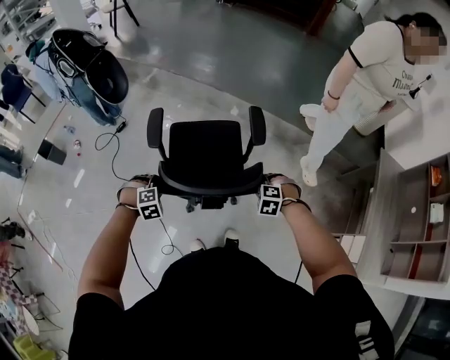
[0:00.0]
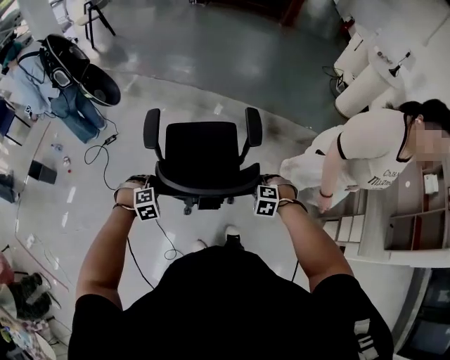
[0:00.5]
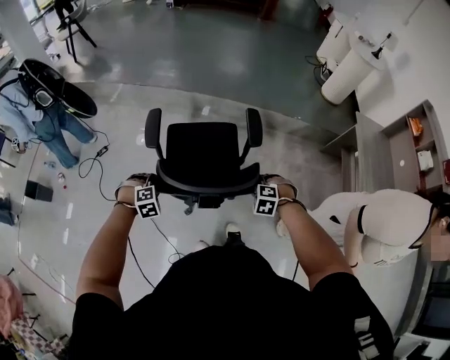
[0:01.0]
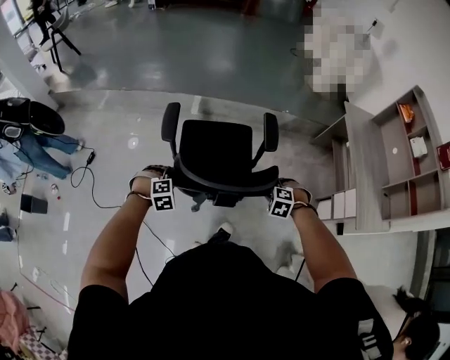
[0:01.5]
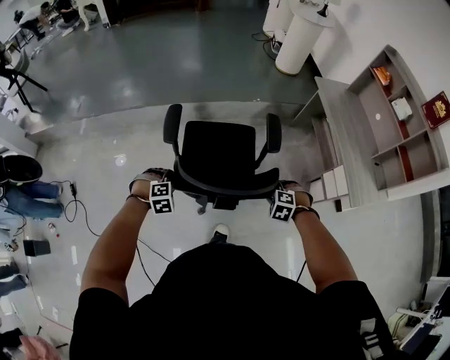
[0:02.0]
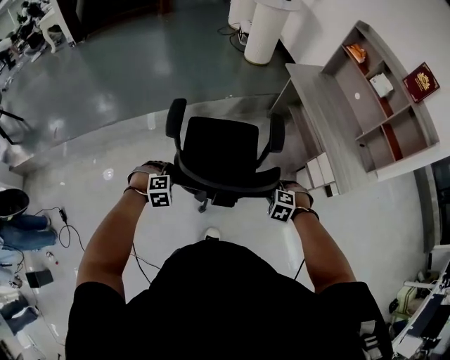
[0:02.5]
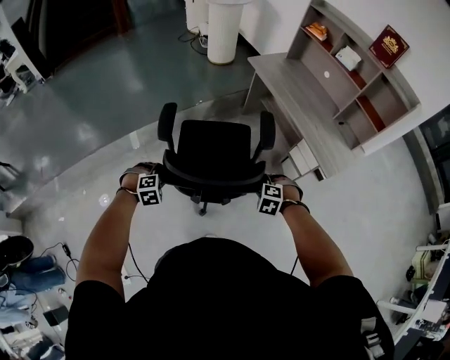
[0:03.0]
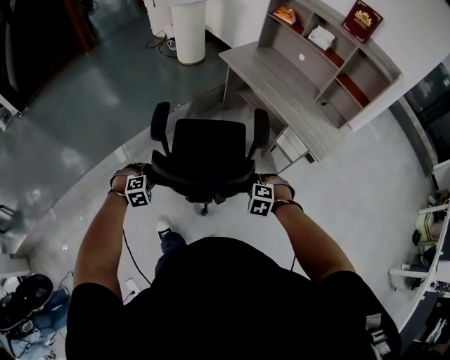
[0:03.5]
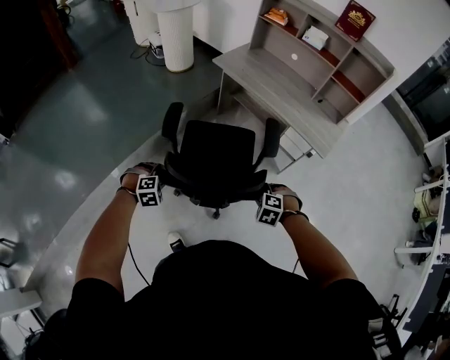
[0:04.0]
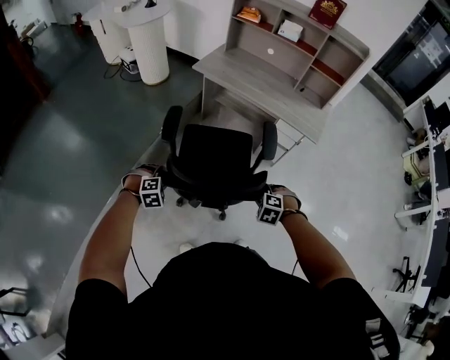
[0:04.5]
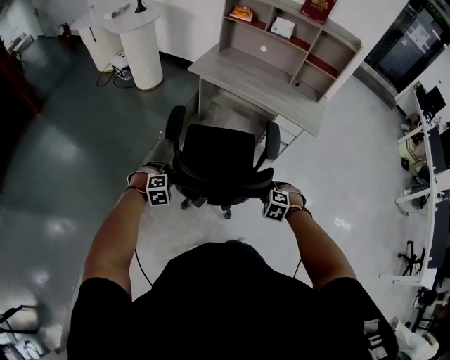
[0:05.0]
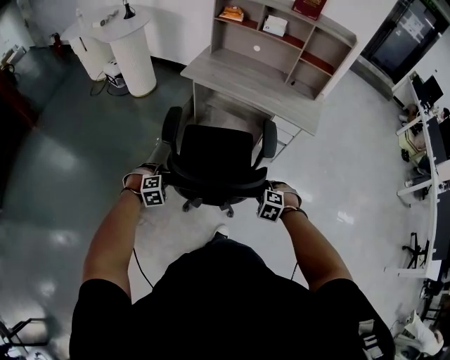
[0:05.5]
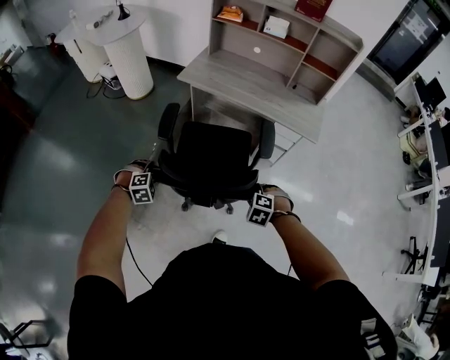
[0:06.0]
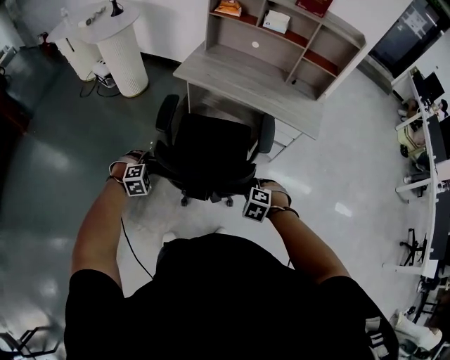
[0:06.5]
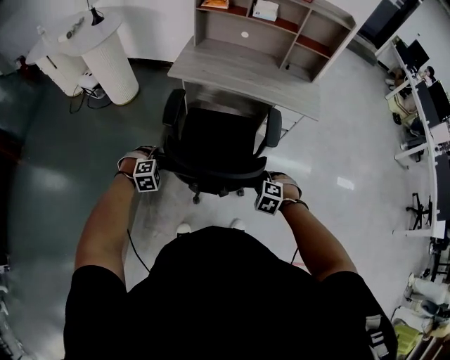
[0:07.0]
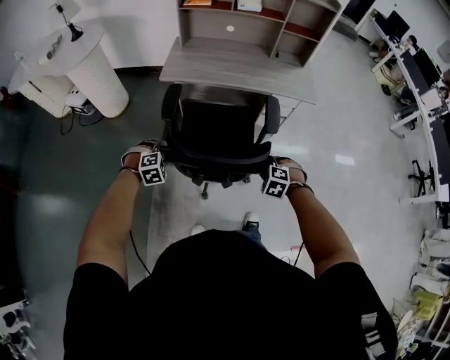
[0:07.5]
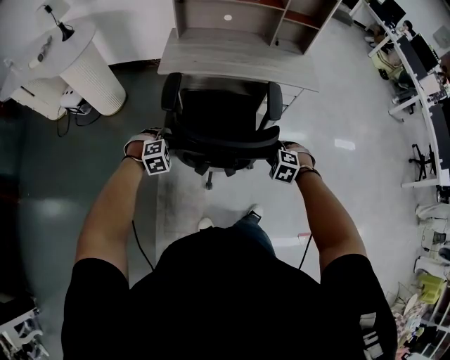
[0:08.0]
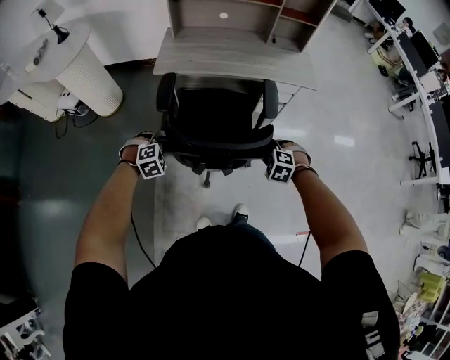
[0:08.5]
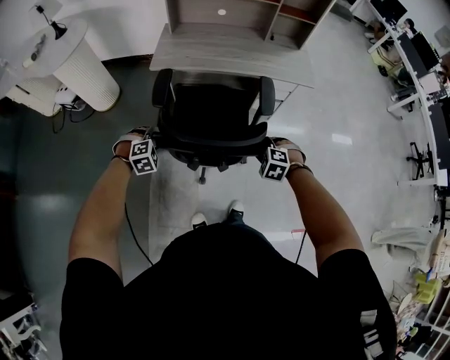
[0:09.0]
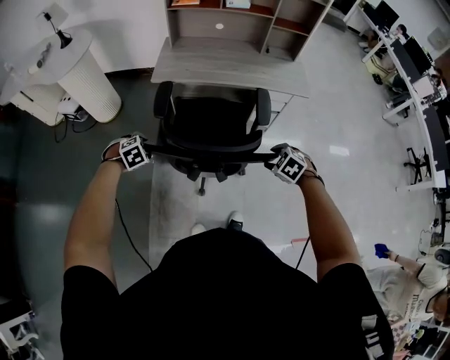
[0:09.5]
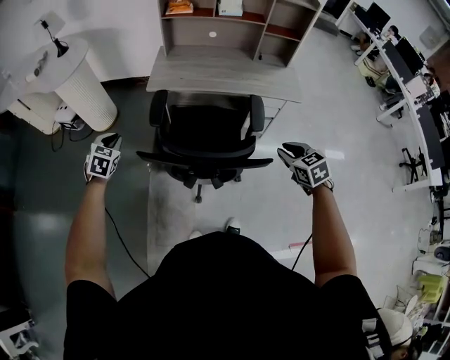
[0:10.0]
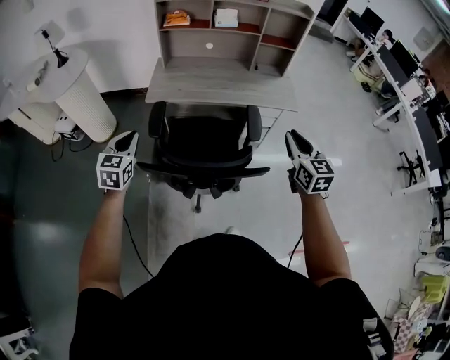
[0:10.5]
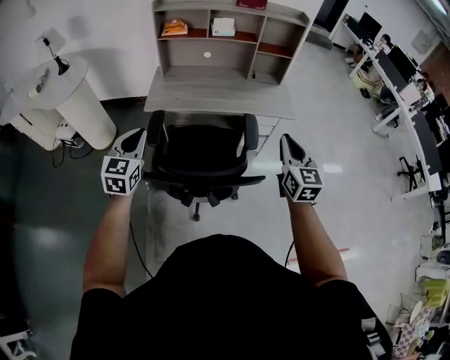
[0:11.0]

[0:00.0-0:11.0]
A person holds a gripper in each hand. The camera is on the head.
0:00.0 to 0:02.0: The left gripper moves approximately 30 cm, and turns by some 40 degrees. The right gripper shifts by approximately 25 cm, and changes its angle by some 40 degrees.
0:02.0 to 0:03.5: The right gripper moves approximately 15 cm, and changes its angle by about 30 degrees. Meanwhile the left gripper shifts by approximately 30 cm, and swivels about 30 degrees.
0:03.5 to 0:05.5: The right gripper changes place by about 15 cm, and rotates about 30 degrees. The left gripper changes place by approximately 20 cm, and rotates about 30 degrees.
0:05.5 to 0:07.5: The right gripper goes roughly 20 cm to the left and forward. Meanwhile the left gripper shifts some 25 cm forward and to the left.
0:07.5 to 0:09.0: The grippers move only a little.
0:09.0 to 0:11.0: The grippers both shift upward by approximately 30 cm. The left gripper tips its fingers upward by some 50 degrees, and closes up; the right gripper tilts its fingers some 60 degrees upward, and closes up.

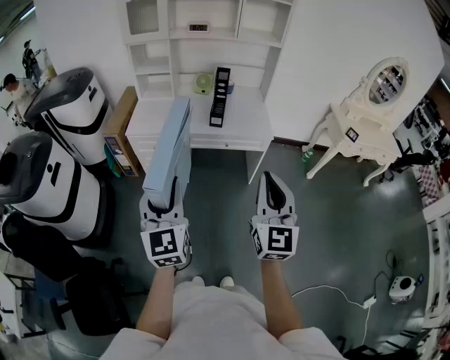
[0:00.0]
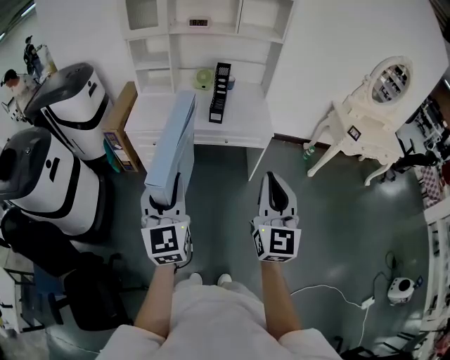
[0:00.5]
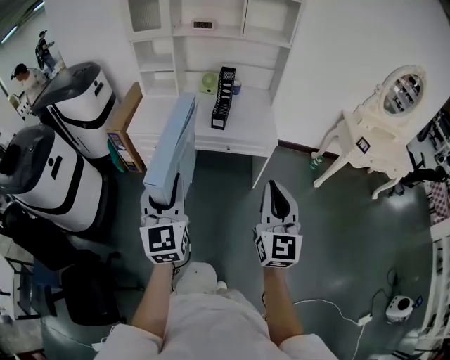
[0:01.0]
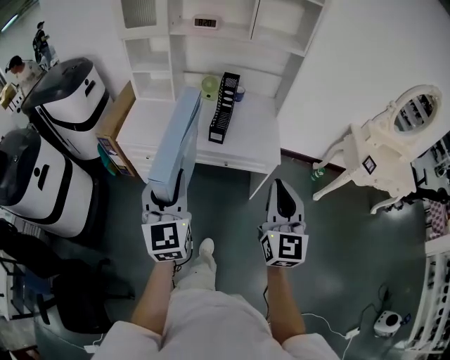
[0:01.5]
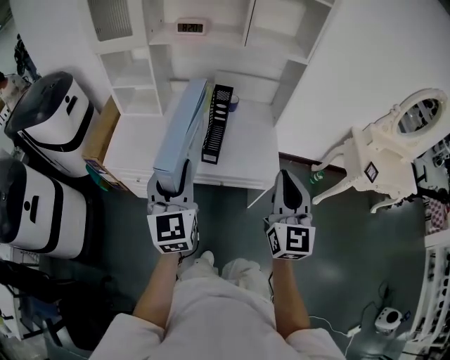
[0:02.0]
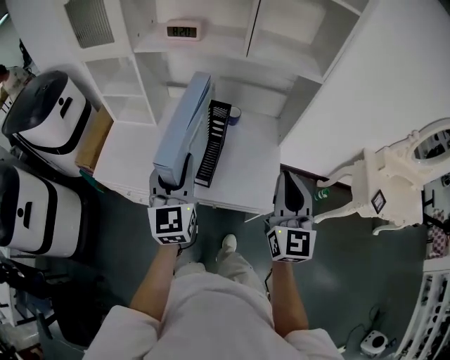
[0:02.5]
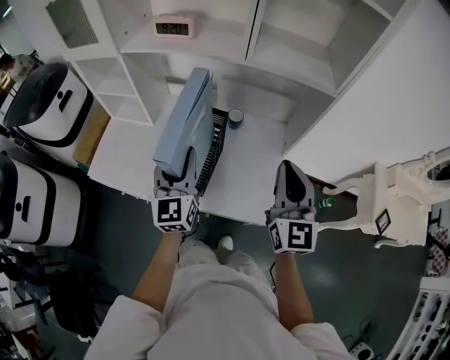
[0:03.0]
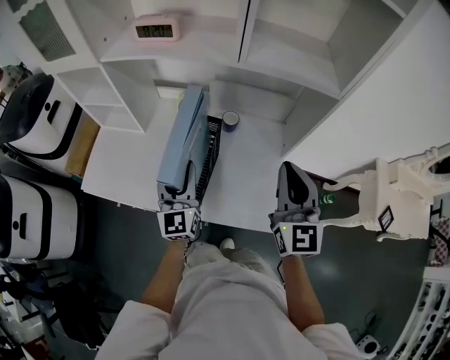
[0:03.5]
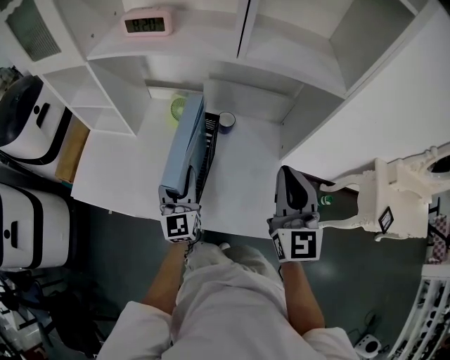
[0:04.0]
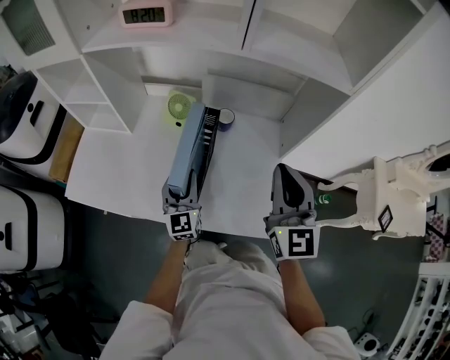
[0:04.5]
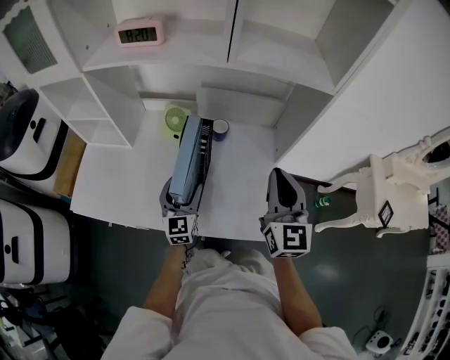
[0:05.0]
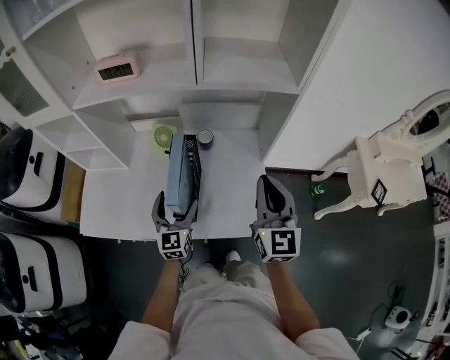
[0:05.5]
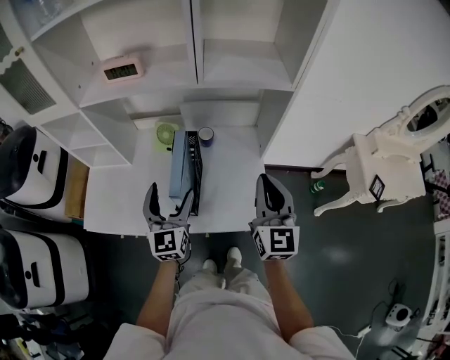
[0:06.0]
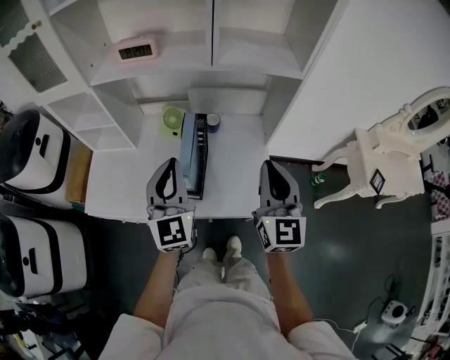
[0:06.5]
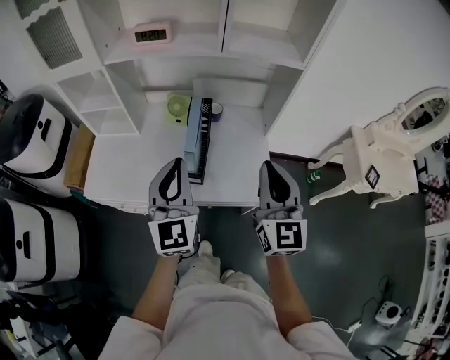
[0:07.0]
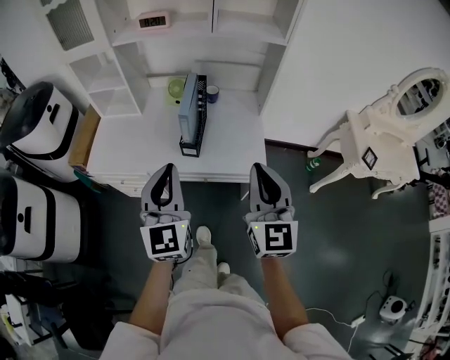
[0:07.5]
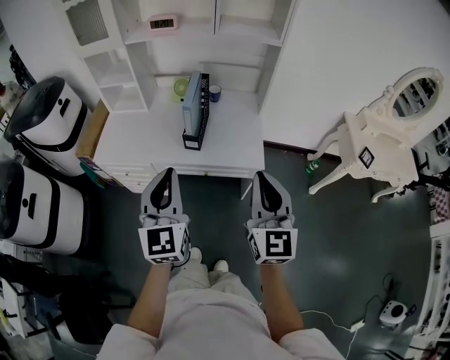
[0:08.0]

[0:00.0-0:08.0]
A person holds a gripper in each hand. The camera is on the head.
0:00.0 to 0:02.0: Both grippers travel together forward, approximately 40 cm.
0:02.0 to 0:04.0: The right gripper moves forward, roughly 35 cm, while the left gripper goes about 40 cm forward and downward.
0:04.0 to 0:06.0: The left gripper travels upward by some 10 cm, and opens its fingers. Meanwhile the right gripper moves backward, some 5 cm.
0:06.0 to 0:08.0: Both grippers move backward, some 35 cm. The left gripper closes its fingers.

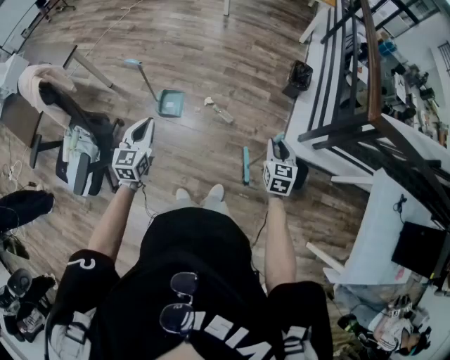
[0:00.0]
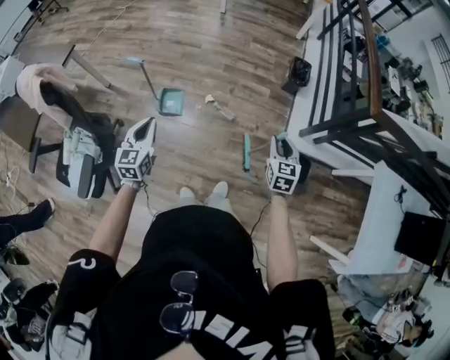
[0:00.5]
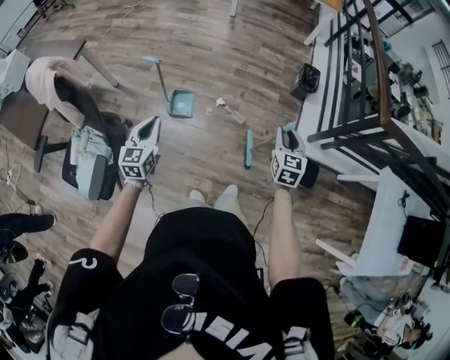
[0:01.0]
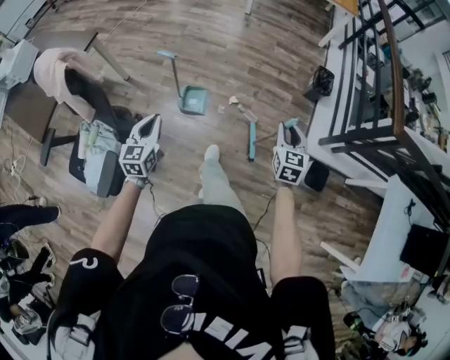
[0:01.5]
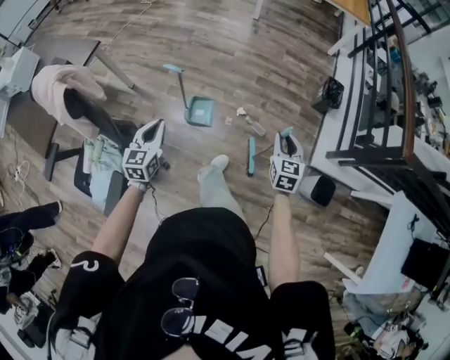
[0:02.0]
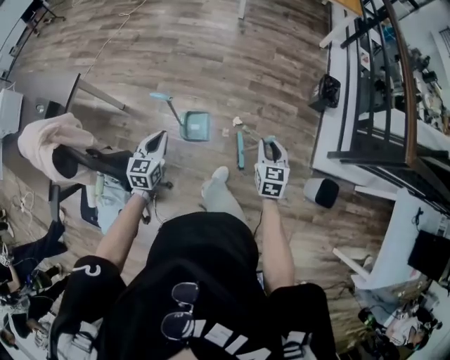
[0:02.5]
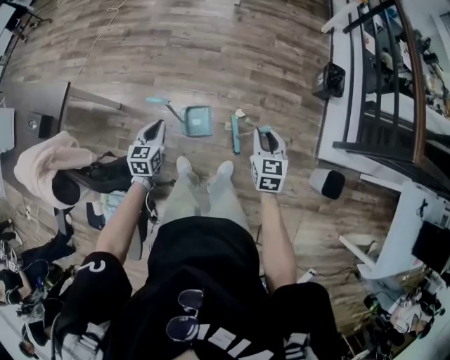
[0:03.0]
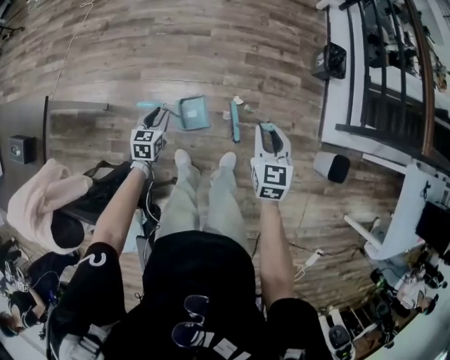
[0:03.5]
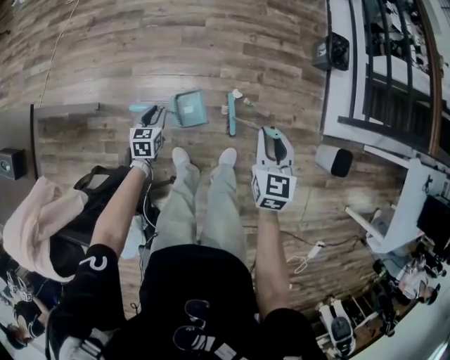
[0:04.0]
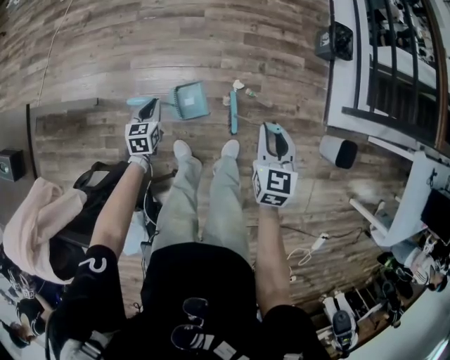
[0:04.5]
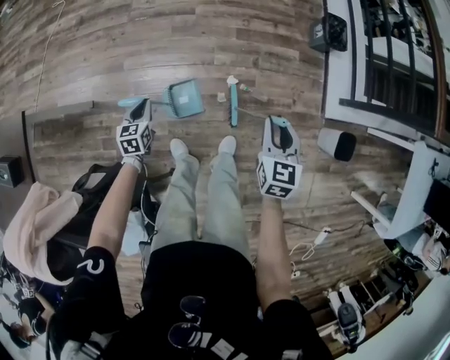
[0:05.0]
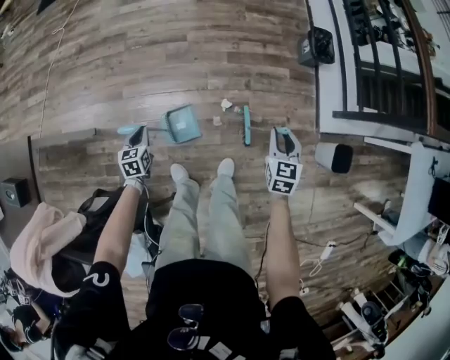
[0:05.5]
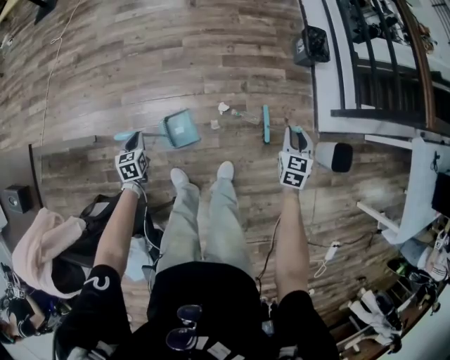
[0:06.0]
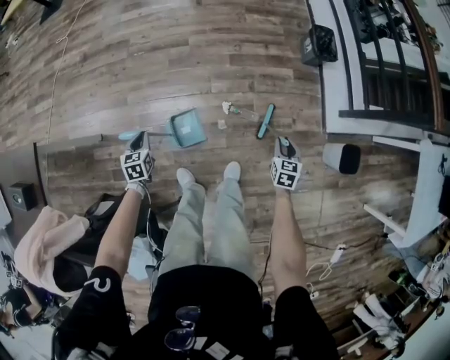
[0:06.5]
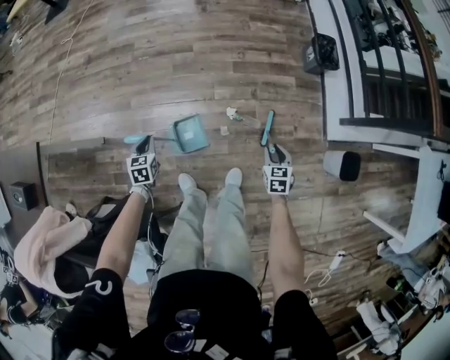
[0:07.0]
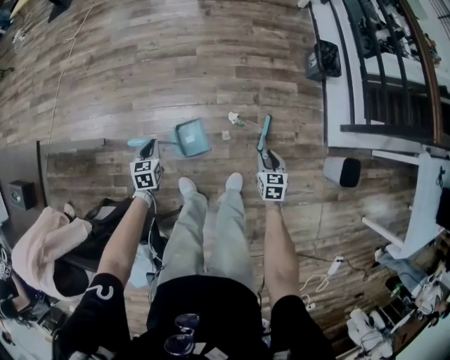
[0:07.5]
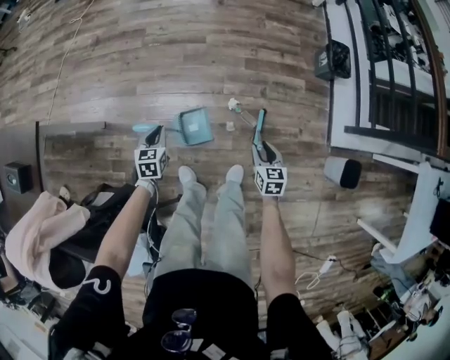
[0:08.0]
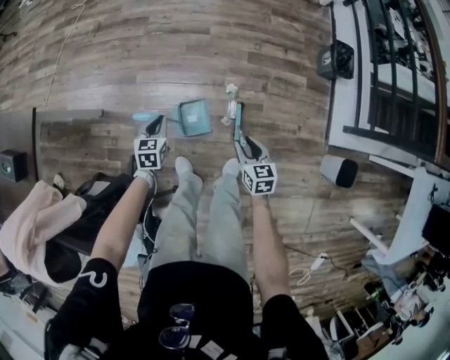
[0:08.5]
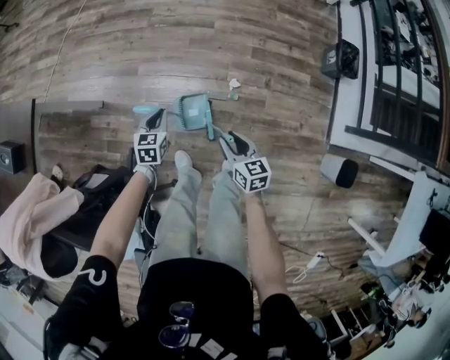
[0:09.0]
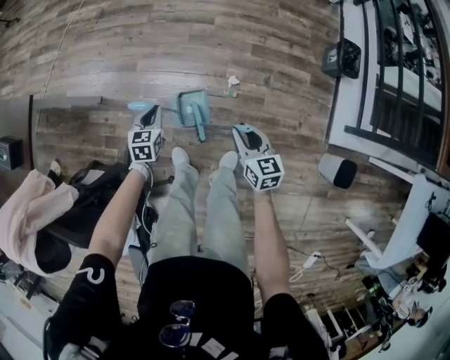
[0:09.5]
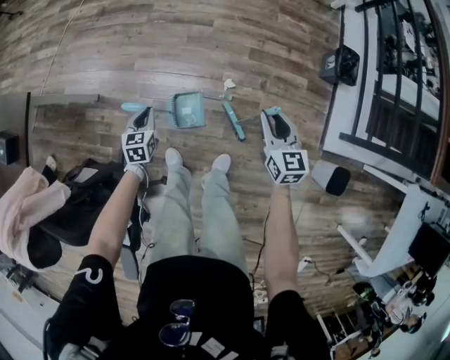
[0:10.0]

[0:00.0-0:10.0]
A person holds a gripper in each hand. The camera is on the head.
0:00.0 to 0:02.0: The right gripper heads to the left and forward, covering roughly 30 cm, while the left gripper is displaced to the left by about 25 cm.
0:02.0 to 0:04.0: The left gripper is displaced forward and downward by about 50 cm, turns by approximately 30 degrees, and opens up. The right gripper heads forward, to the left and downward, covering about 30 cm.
0:04.0 to 0:06.0: The right gripper shifts some 25 cm to the right and downward; the left gripper closes.
0:06.0 to 0:08.0: The right gripper travels to the left and downward by approximately 20 cm, and changes its angle by some 20 degrees.
0:08.0 to 0:10.0: The right gripper is displaced upward and forward by approximately 20 cm, moves some 15 cm to the left and comes back, and swivels about 20 degrees.
